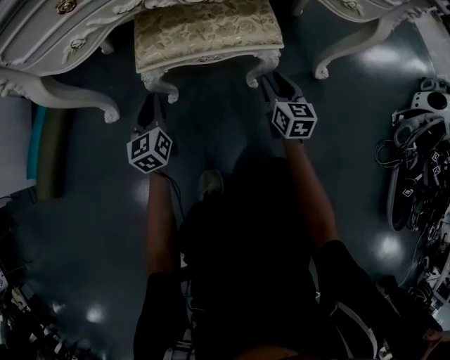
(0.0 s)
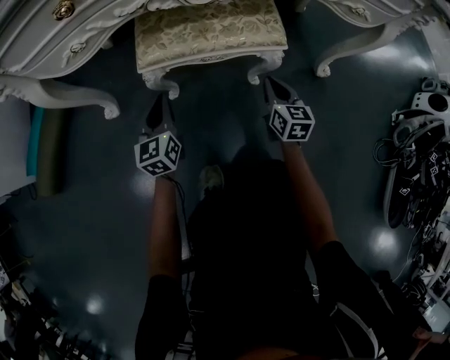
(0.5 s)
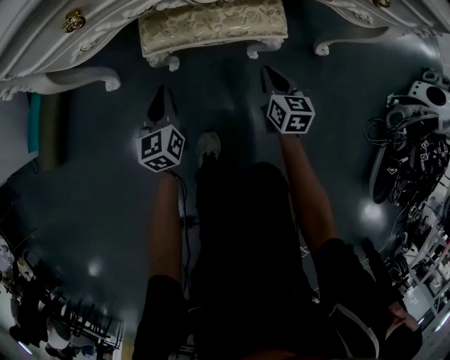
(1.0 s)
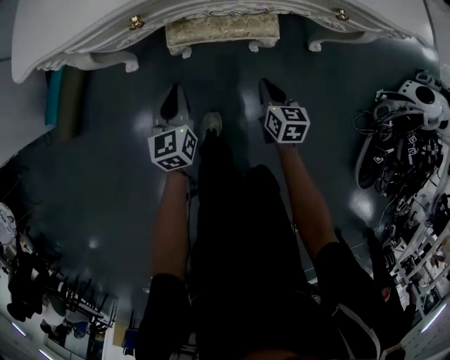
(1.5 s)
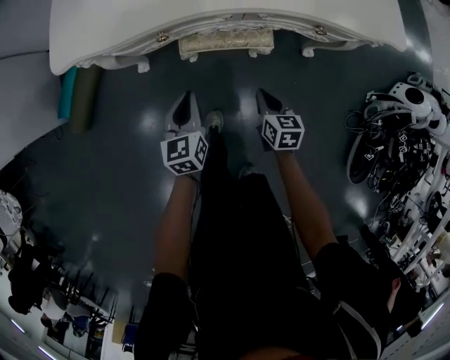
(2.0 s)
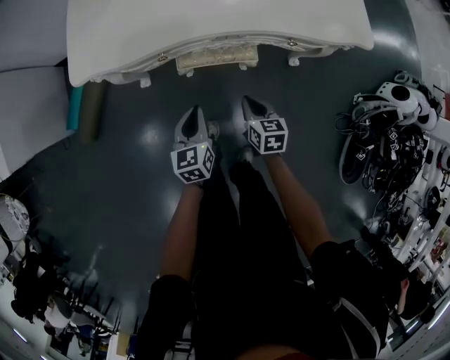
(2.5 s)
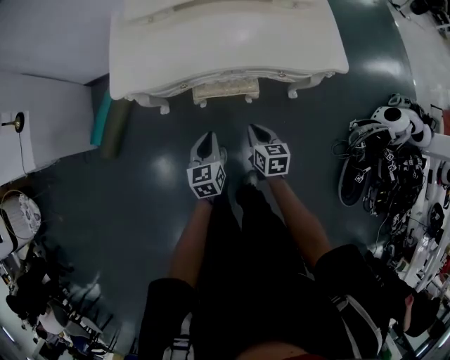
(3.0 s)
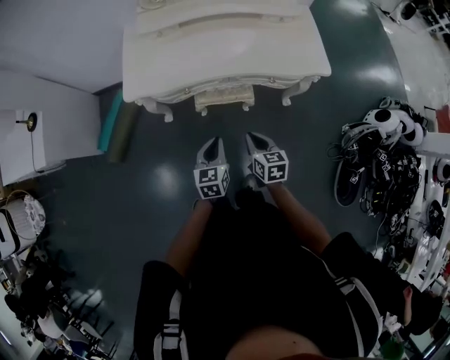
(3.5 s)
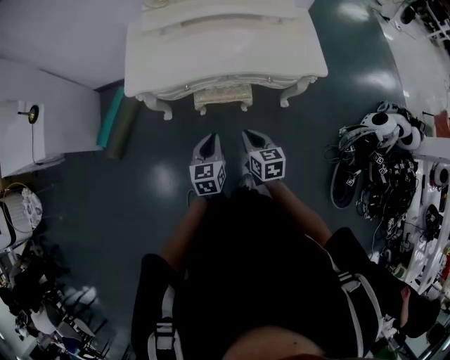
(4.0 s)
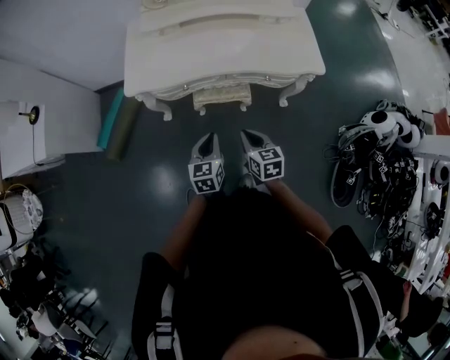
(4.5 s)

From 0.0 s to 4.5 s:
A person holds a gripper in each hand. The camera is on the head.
From 0.0 s to 2.0 s: Both grippers move upward, about 30 cm. The right gripper rotates roughly 30 degrees.
From 2.0 s to 4.5 s: The right gripper travels upward by about 35 cm; the left gripper is displaced upward and backward by some 30 cm.

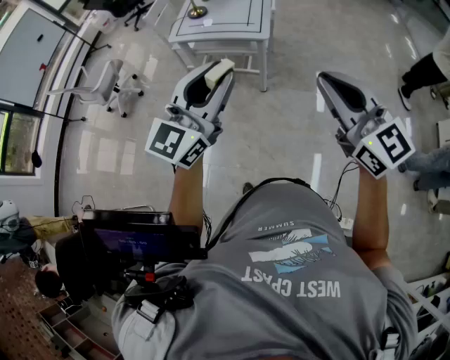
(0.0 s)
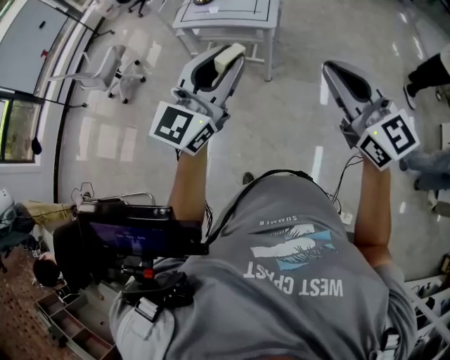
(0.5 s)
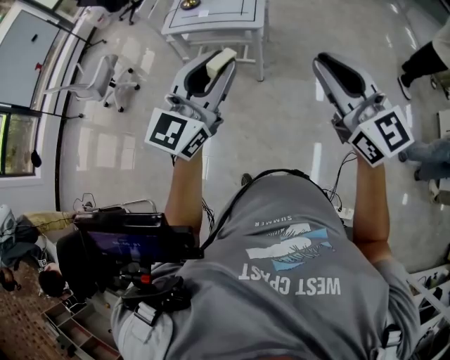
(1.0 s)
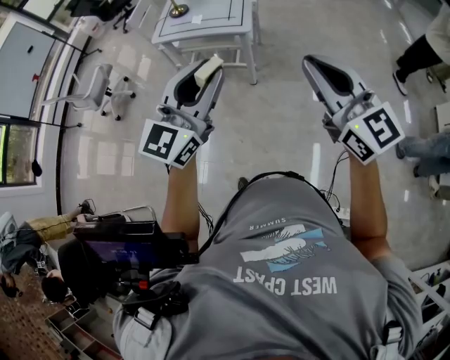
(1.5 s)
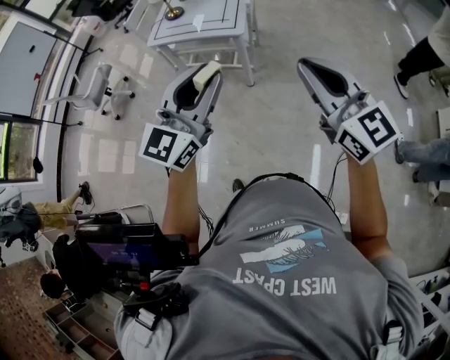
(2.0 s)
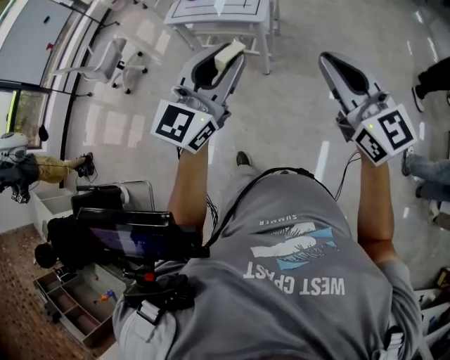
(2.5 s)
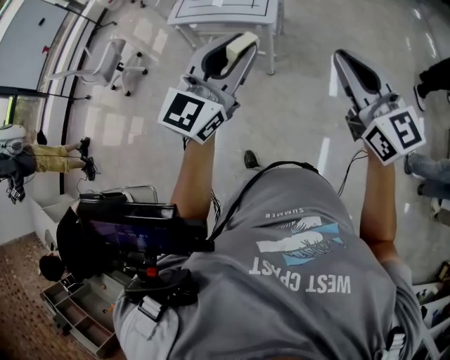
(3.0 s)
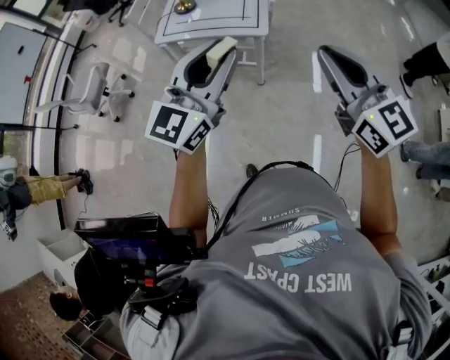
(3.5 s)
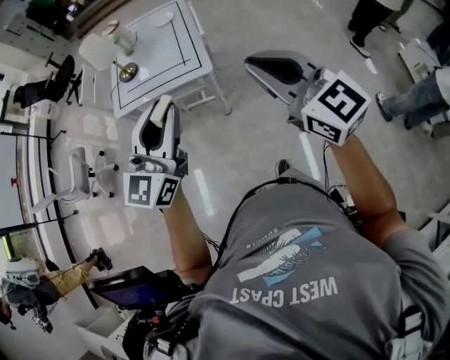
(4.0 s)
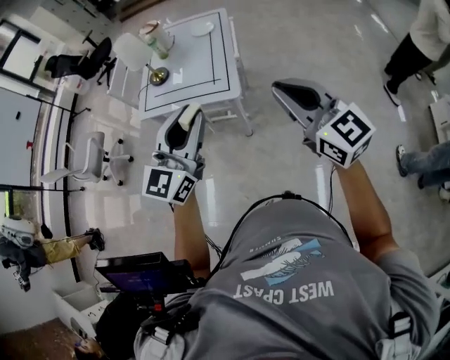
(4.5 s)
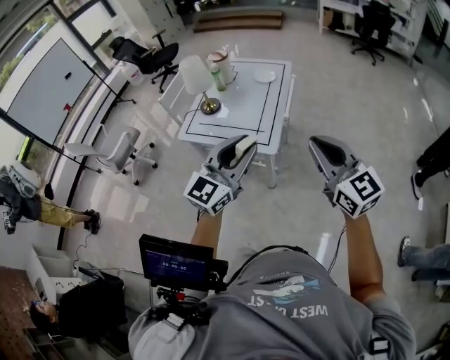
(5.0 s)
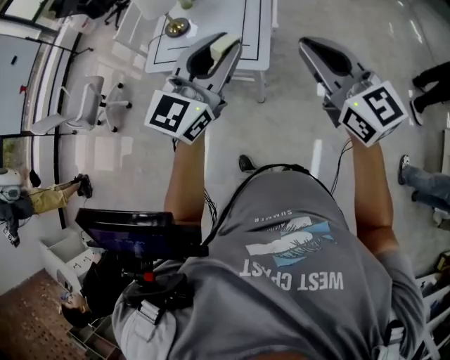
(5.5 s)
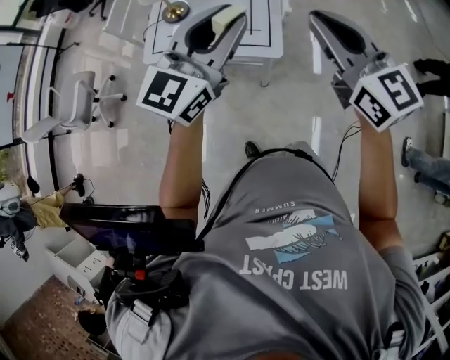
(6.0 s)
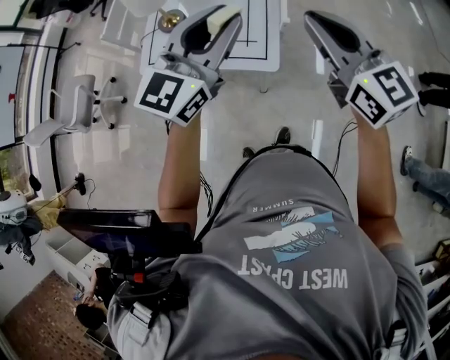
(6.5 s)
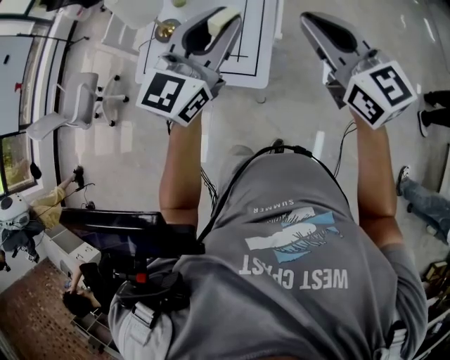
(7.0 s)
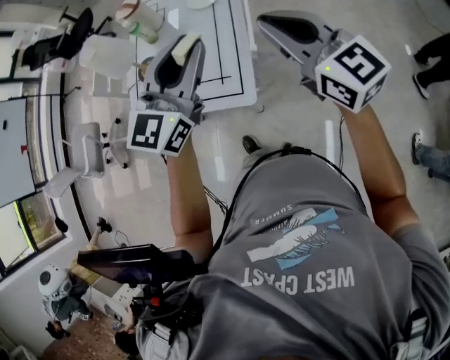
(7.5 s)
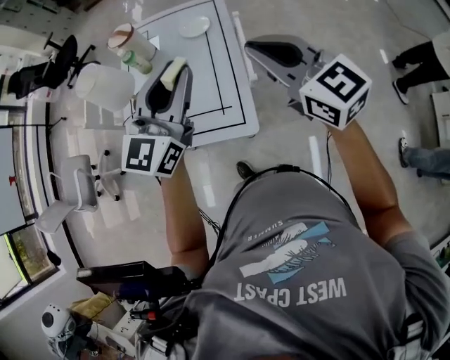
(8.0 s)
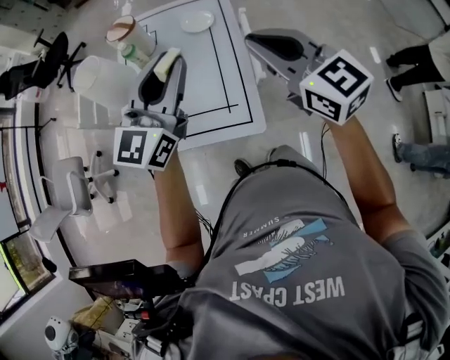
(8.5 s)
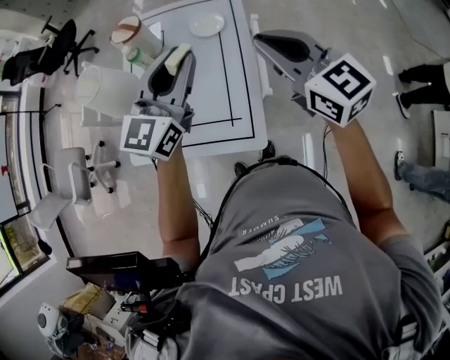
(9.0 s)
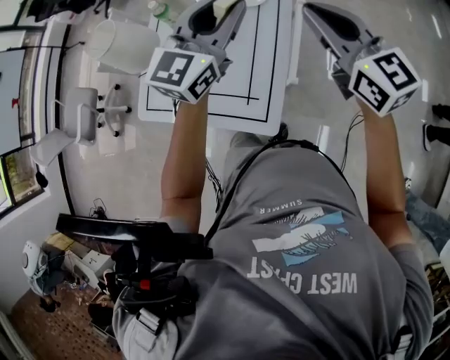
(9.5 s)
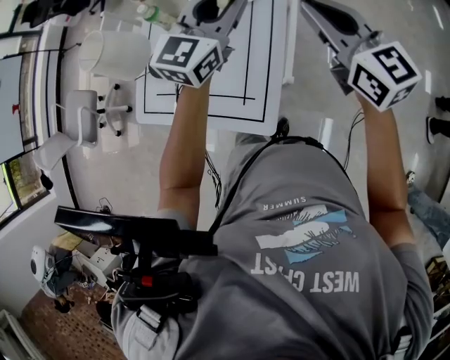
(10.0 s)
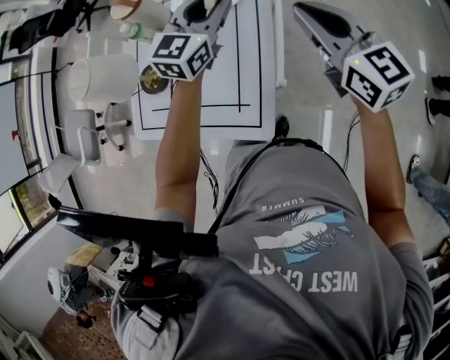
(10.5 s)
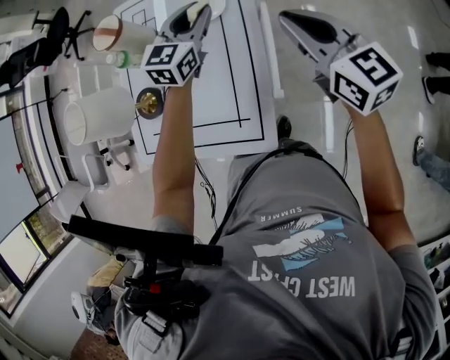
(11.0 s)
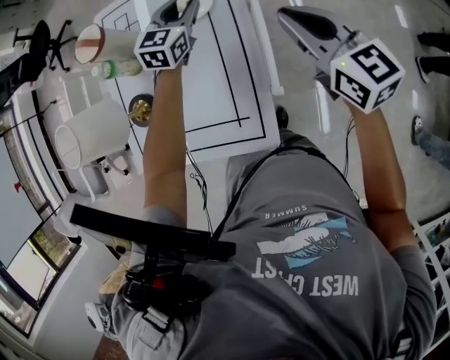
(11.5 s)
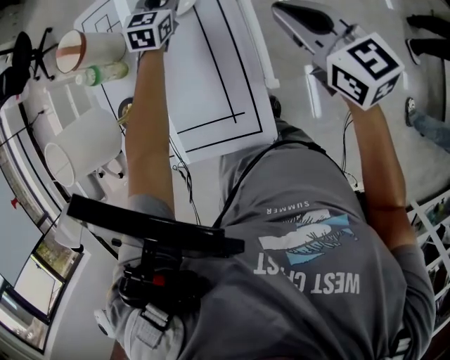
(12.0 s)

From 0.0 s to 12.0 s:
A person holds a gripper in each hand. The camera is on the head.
From 0.0 s to 2.0 s: The grippers both shift to the right by some 10 cm.
From 2.0 s to 4.0 s: Both grippers move forward and to the left, some 20 cm.
From 4.0 s to 6.0 s: The two grippers go about 25 cm forward.
From 6.0 s to 8.0 s: Both grippers travel together forward, about 20 cm.
From 8.0 s to 10.0 s: The grippers both shift forward by approximately 20 cm.
From 10.0 s to 12.0 s: The left gripper moves downward and forward, some 30 cm, and changes its angle by approximately 30 degrees; the right gripper travels downward and forward by roughly 10 cm, and changes its angle by about 20 degrees.

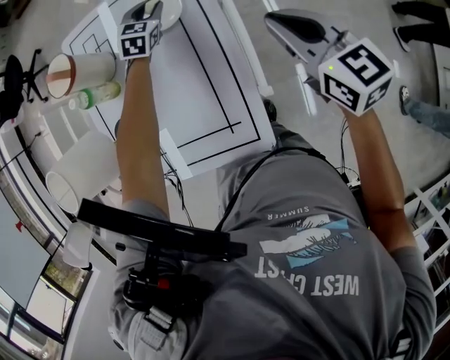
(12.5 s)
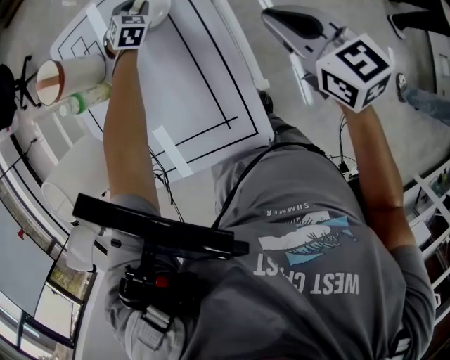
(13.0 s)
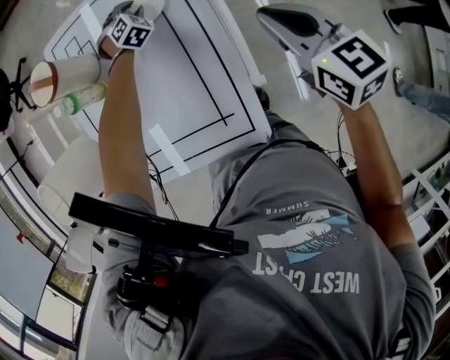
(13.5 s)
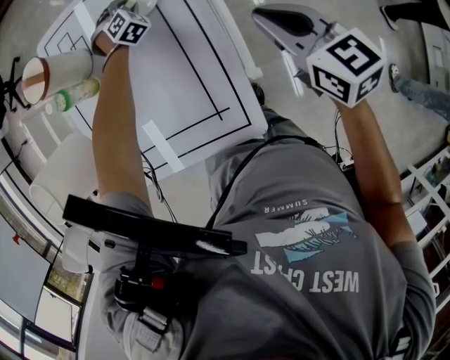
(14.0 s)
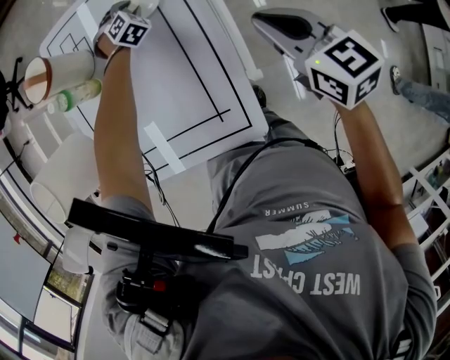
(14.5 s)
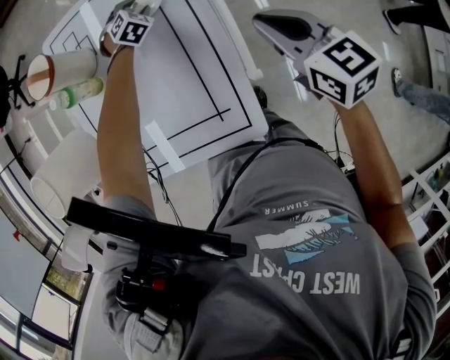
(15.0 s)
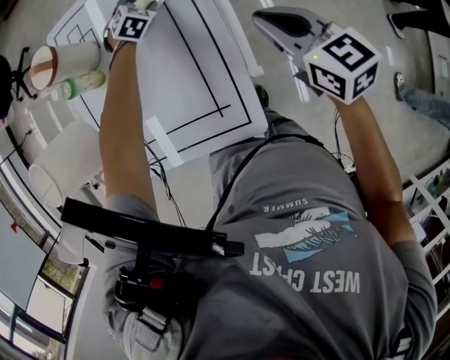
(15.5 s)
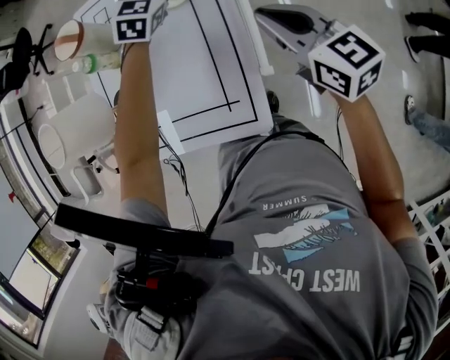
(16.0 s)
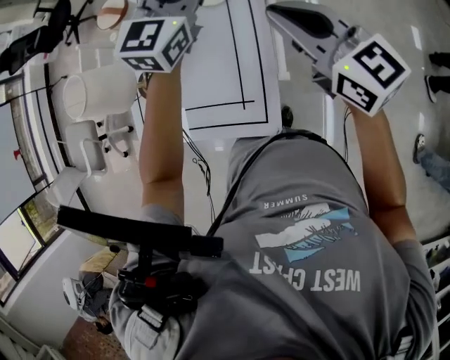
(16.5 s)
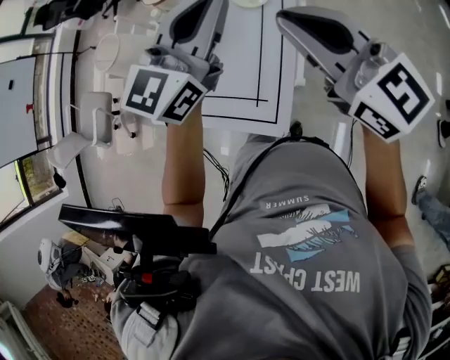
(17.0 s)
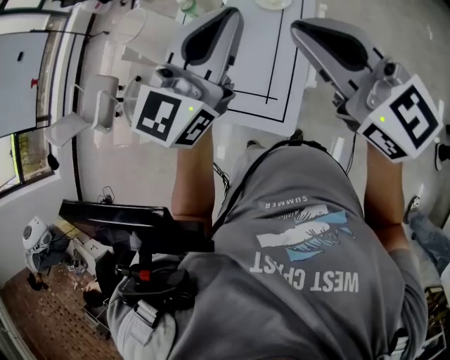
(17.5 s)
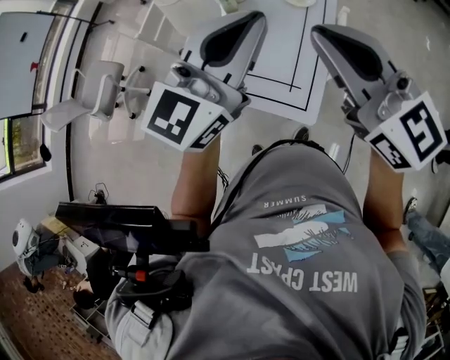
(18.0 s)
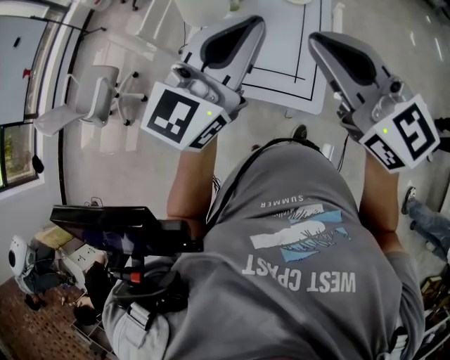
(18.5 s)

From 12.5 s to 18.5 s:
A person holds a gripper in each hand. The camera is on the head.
From 12.5 s to 14.5 s: The left gripper is displaced downward by roughly 10 cm, and turns by roughly 40 degrees. Meanwhile the right gripper moves roughly 5 cm.
From 14.5 s to 16.5 s: The left gripper goes about 40 cm upward and backward, and angles its fingers upward, by approximately 50 degrees, while the right gripper moves upward, approximately 15 cm, and changes its angle by about 30 degrees.
From 16.5 s to 18.5 s: The left gripper goes roughly 40 cm backward, to the left and upward, and closes its fingers. Meanwhile the right gripper goes roughly 30 cm to the left, backward and upward.

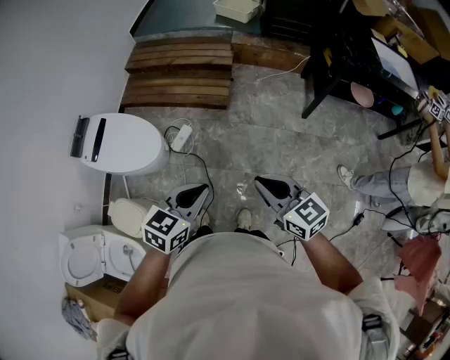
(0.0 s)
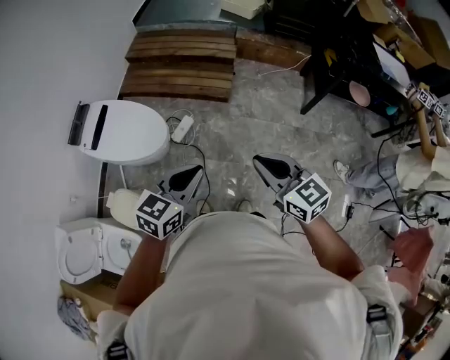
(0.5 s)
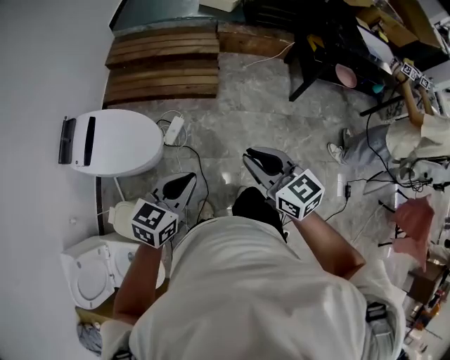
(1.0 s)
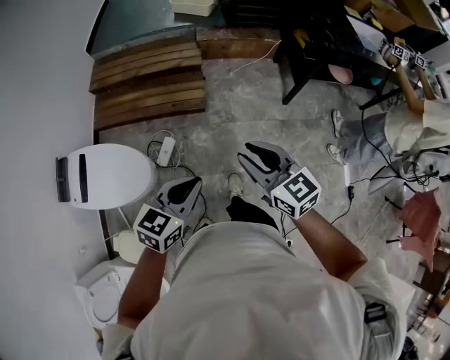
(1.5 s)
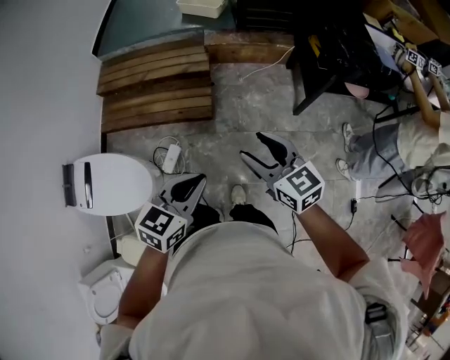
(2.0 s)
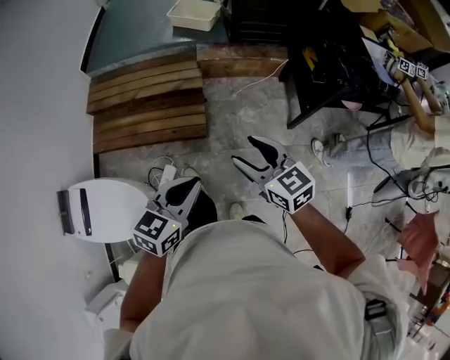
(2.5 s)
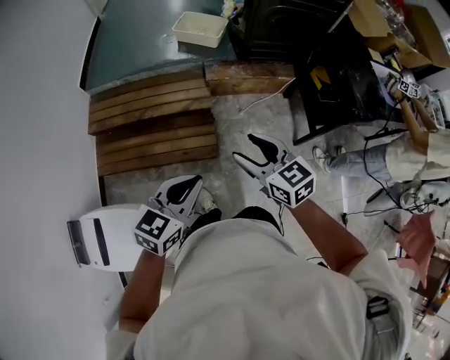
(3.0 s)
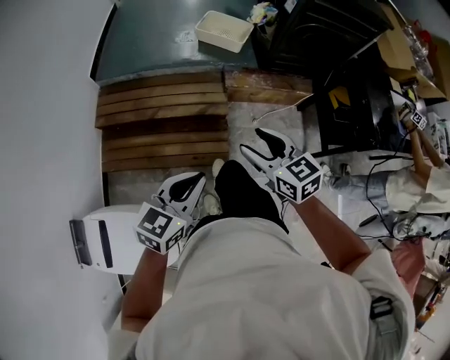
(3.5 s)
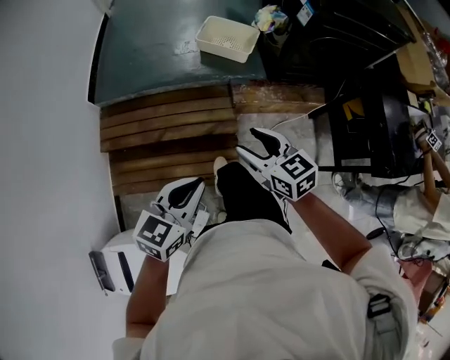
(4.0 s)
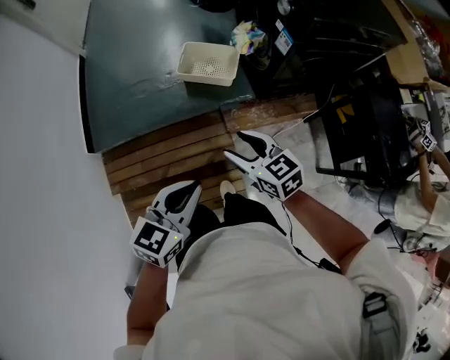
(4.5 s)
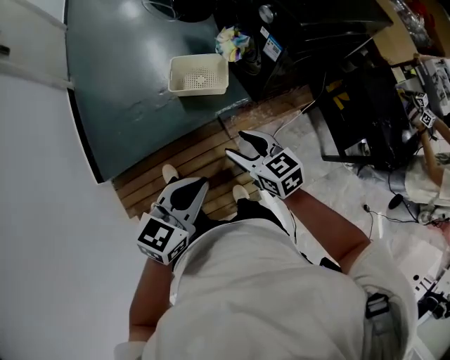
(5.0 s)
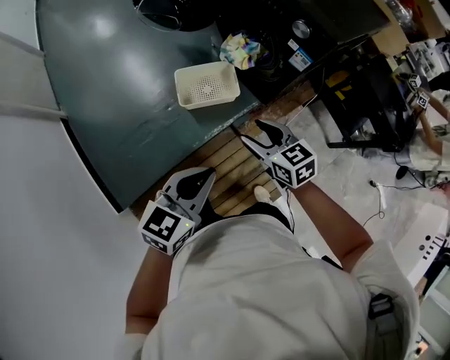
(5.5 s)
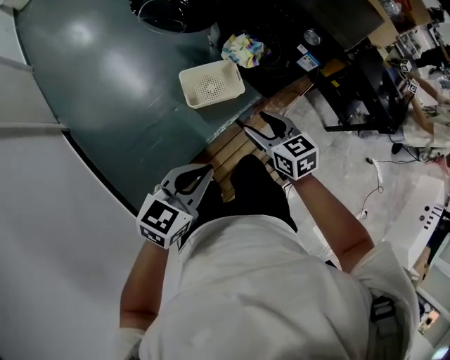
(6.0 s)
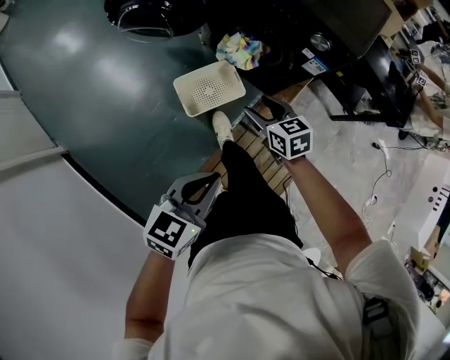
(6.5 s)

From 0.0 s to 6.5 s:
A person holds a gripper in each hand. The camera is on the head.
From 0.0 s to 2.0 s: Both grippers travel together forward, about 25 cm. The right gripper opens up.
From 2.0 s to 4.5 s: The two grippers travel together, forward, some 80 cm.
From 4.5 s to 6.5 s: The pair of grippers is taken roughly 40 cm. The right gripper rotates roughly 50 degrees; the left gripper swivels some 40 degrees.
